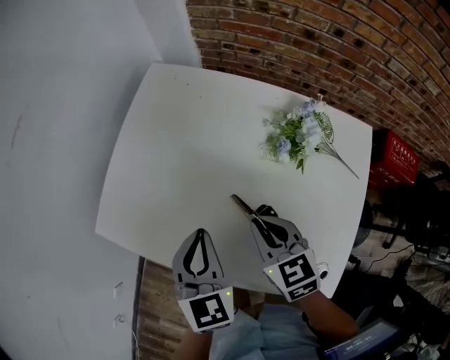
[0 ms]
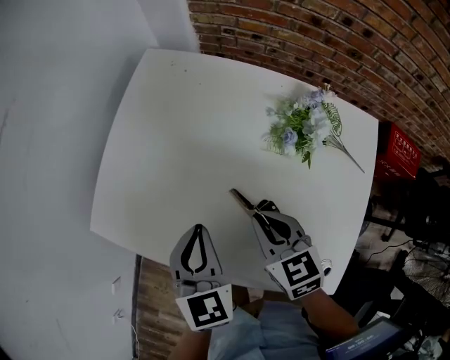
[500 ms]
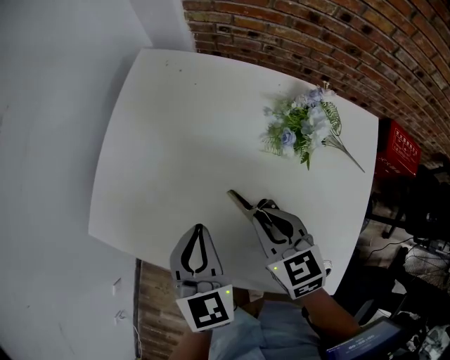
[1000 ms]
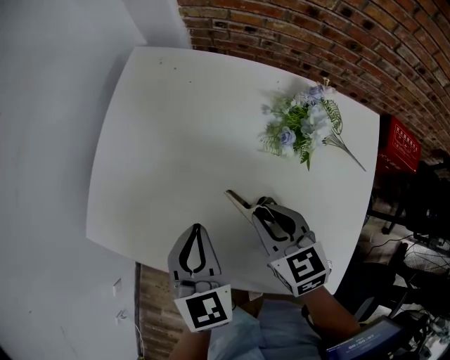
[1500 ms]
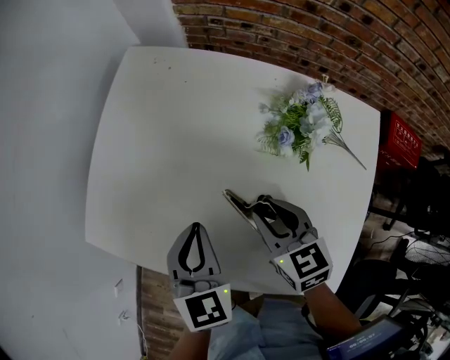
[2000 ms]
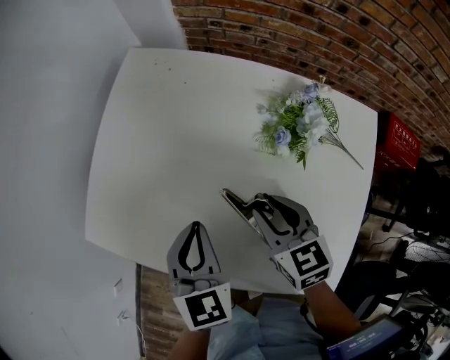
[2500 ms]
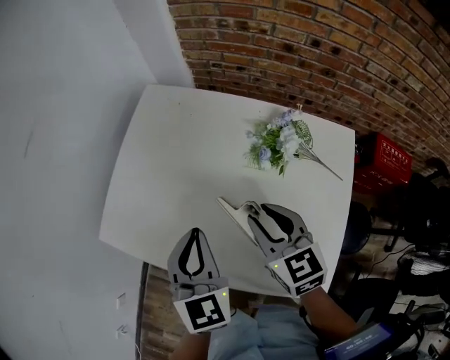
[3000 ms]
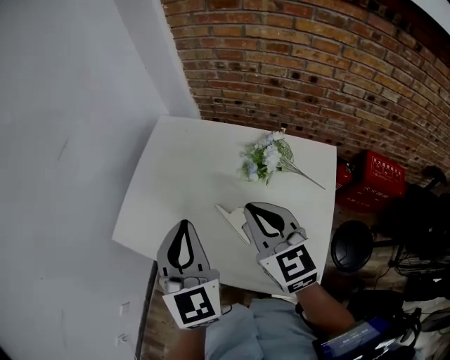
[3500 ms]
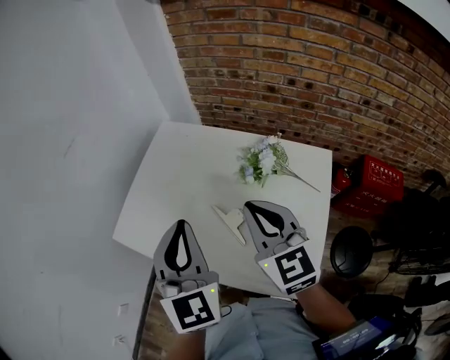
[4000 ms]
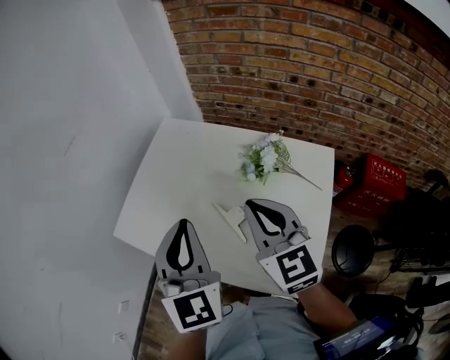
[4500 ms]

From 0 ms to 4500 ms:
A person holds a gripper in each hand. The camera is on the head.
From 0 ms to 2000 ms: The right gripper ends up about 5 cm from where it was, and opens its fingers.
From 2000 ms to 4500 ms: The grippers both shift upward by approximately 25 cm. The right gripper rotates about 30 degrees, and closes up, while the left gripper rotates approximately 30 degrees.

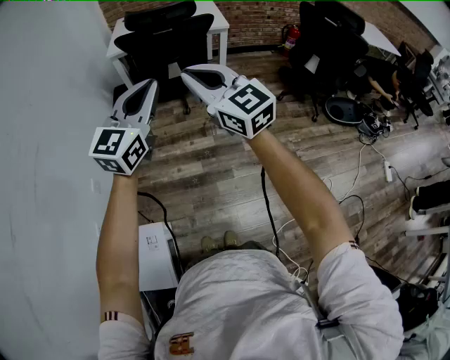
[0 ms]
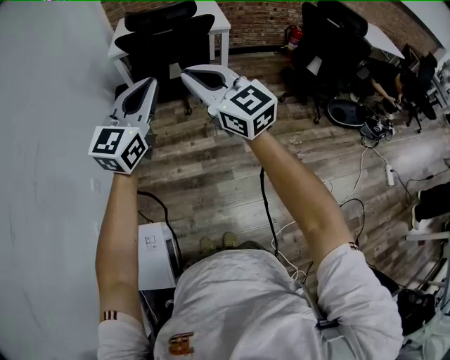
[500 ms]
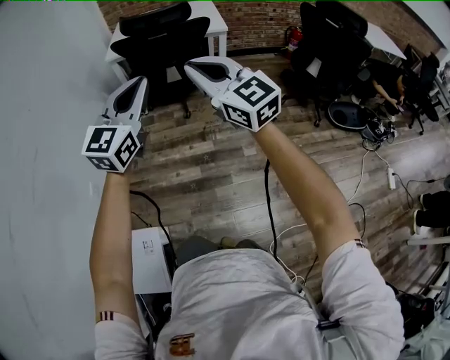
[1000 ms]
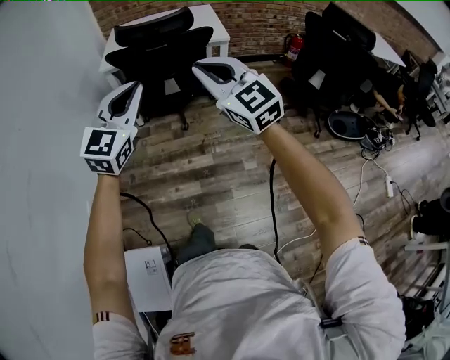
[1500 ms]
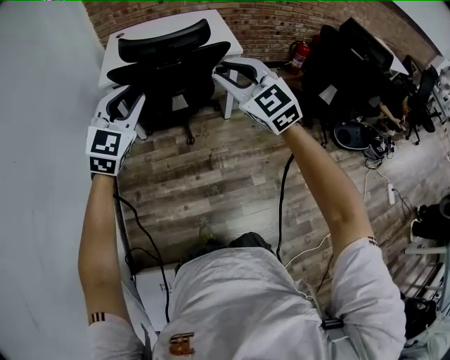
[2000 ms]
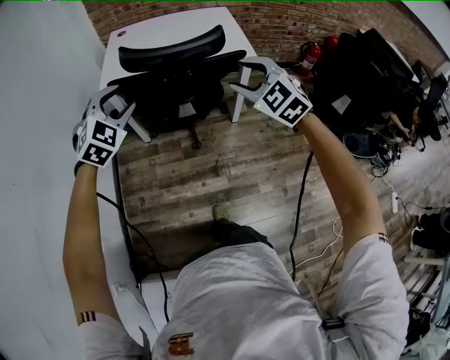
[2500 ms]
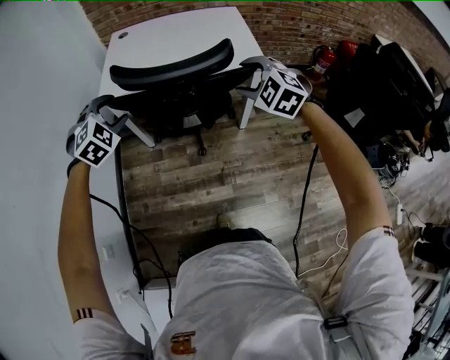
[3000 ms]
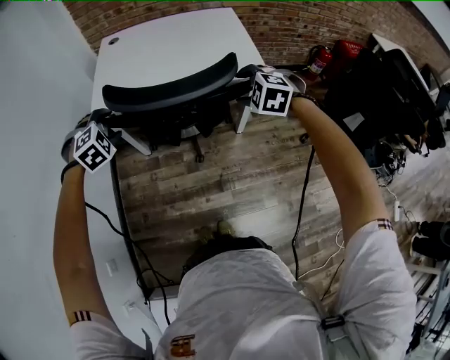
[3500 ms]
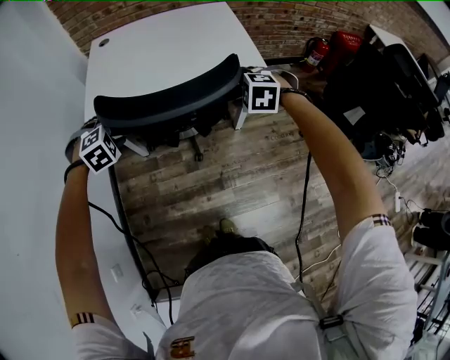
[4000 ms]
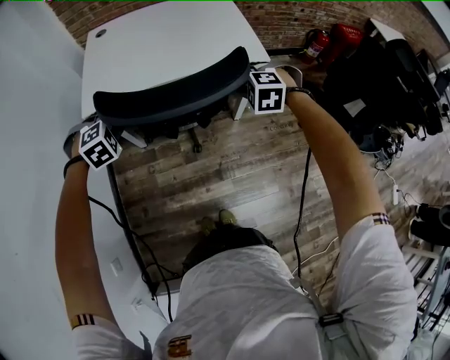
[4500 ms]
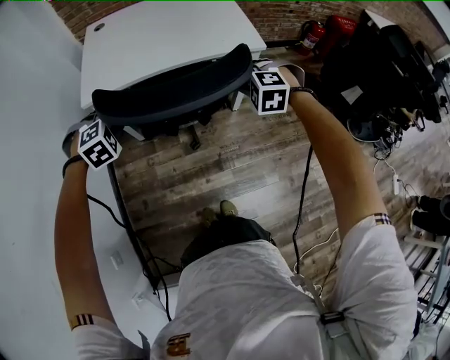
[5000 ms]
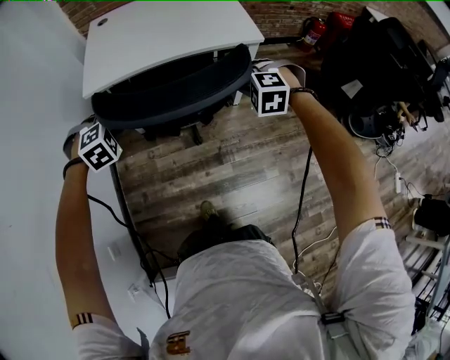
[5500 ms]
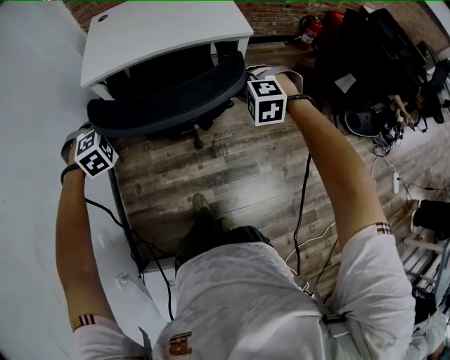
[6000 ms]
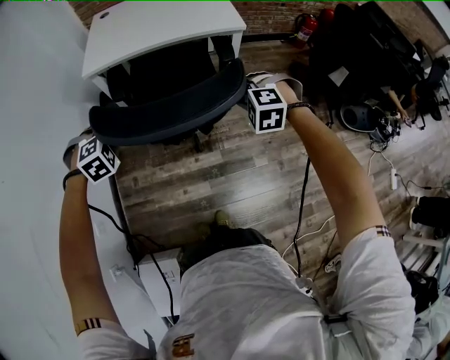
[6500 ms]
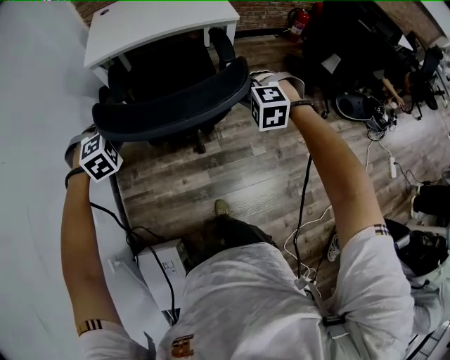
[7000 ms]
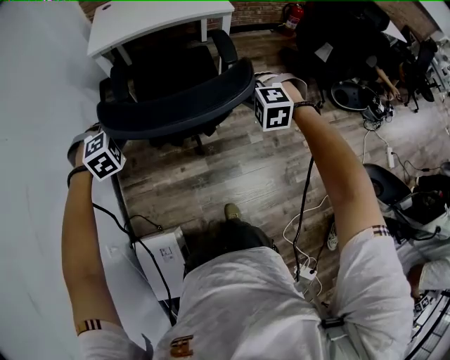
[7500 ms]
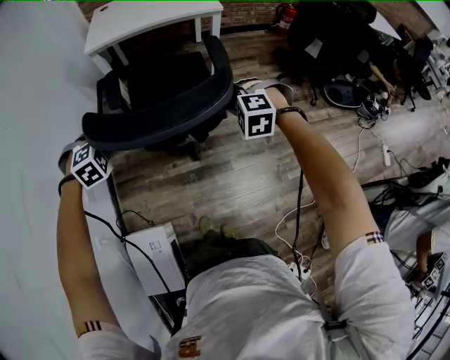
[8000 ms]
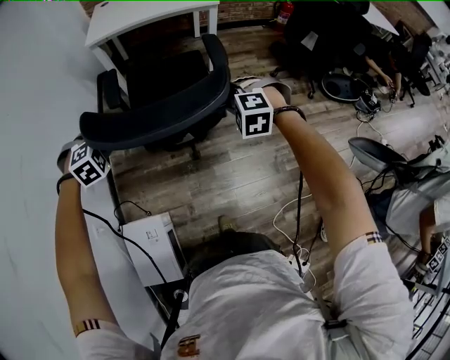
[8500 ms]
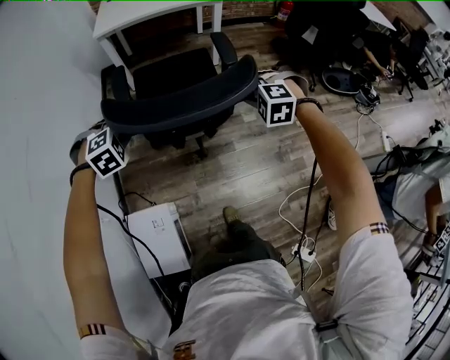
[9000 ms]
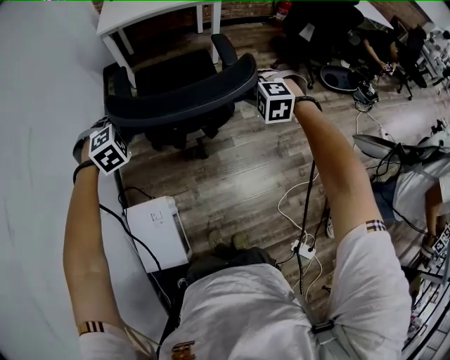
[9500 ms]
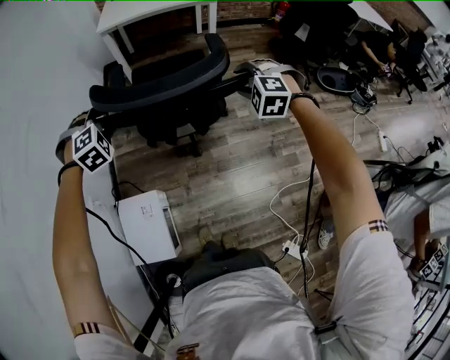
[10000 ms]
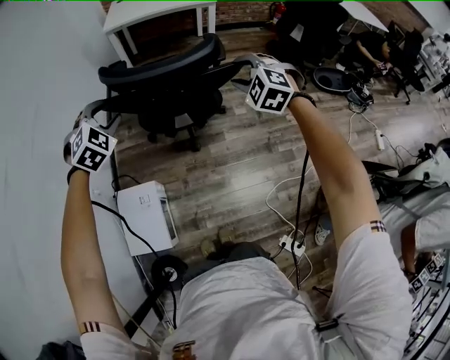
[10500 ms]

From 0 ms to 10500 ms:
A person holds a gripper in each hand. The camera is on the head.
From 0 ms to 2000 ms: Both grippers move forward, approximately 30 cm. The right gripper changes its angle by roughly 30 degrees, and opens its fingers. The left gripper rotates roughly 30 degrees, and opens up.
From 2000 ms to 4000 ms: Both grippers travel together forward and downward, approximately 40 cm. The right gripper points its fingers roughly 60 degrees further downward, and opens its fingers, while the left gripper angles its fingers downward, by some 50 degrees, and opens up.
From 4000 ms to 6500 ms: The grippers both shift backward by about 30 cm. The right gripper closes up. Meanwhile the left gripper closes.
From 6500 ms to 8500 ms: The two grippers go some 35 cm backward.
From 8500 ms to 10500 ms: Both grippers travel together backward and upward, about 25 cm. The left gripper rotates some 30 degrees, and opens, while the right gripper rotates roughly 20 degrees, and opens its fingers.

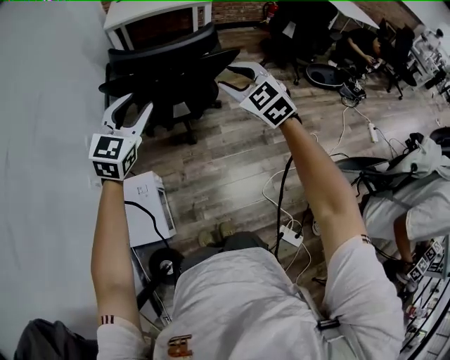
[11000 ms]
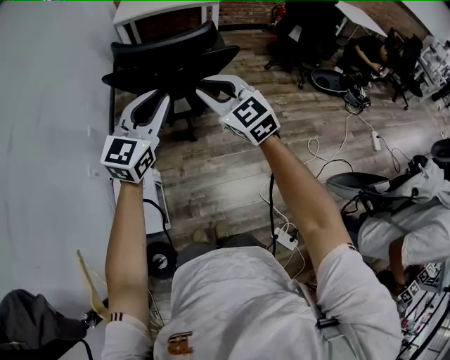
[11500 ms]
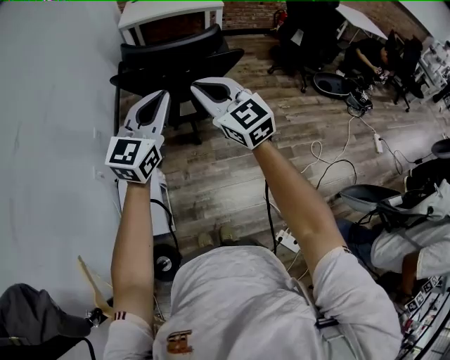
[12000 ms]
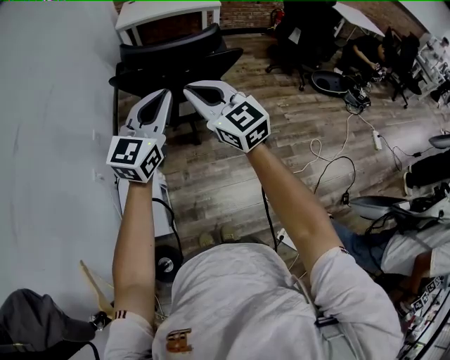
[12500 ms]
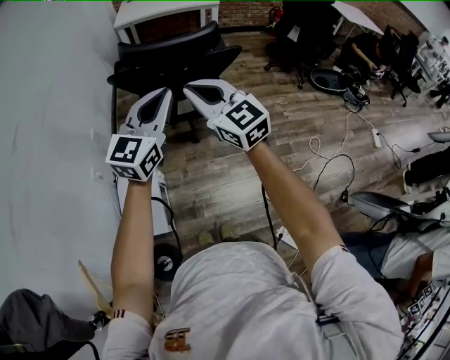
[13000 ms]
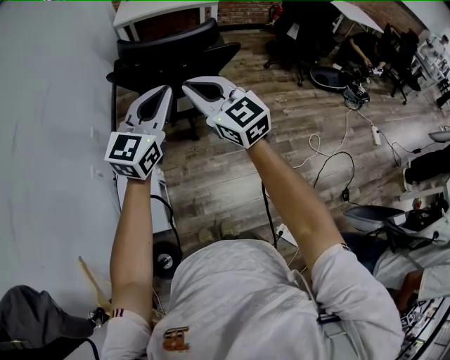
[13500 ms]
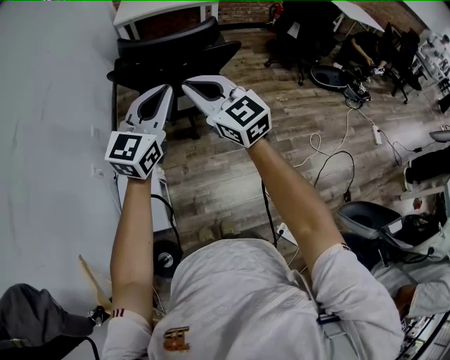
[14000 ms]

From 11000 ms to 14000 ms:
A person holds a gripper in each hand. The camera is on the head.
From 11000 ms to 12500 ms: The left gripper shifts roughly 10 cm backward, upward and to the right, and closes its fingers, while the right gripper goes approximately 15 cm to the left, backward and upward, turns by roughly 30 degrees, and closes.
From 12500 ms to 14000 ms: There are only small adjustments of the grippers.

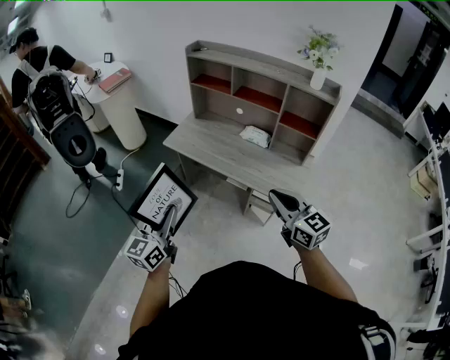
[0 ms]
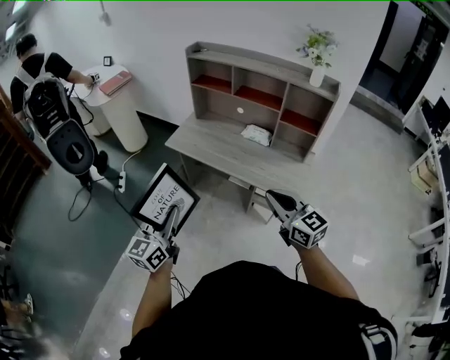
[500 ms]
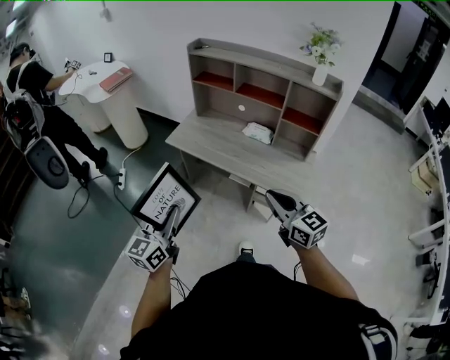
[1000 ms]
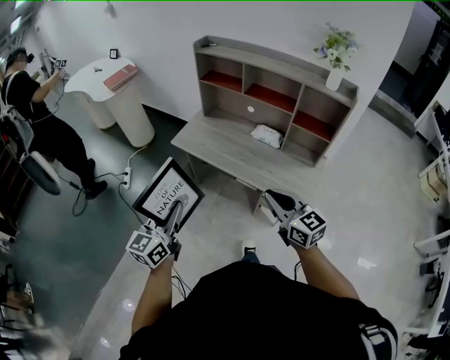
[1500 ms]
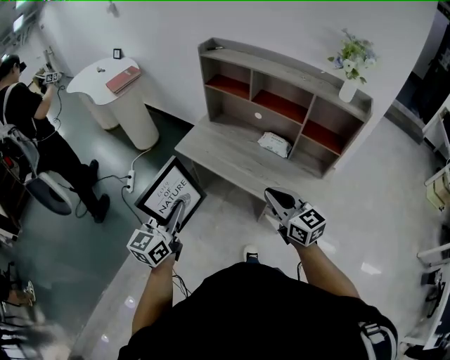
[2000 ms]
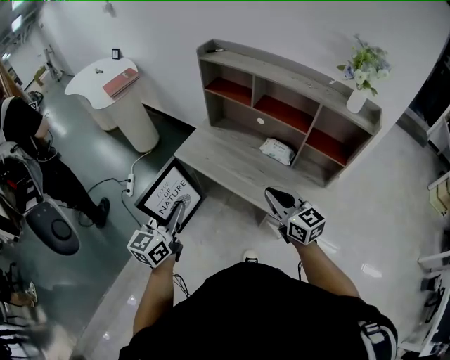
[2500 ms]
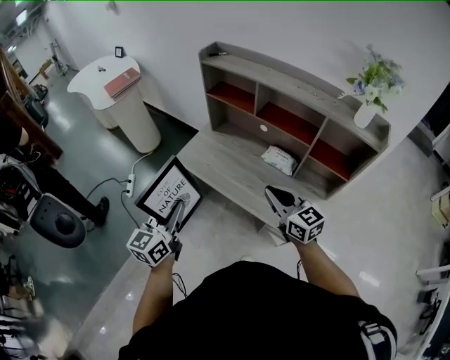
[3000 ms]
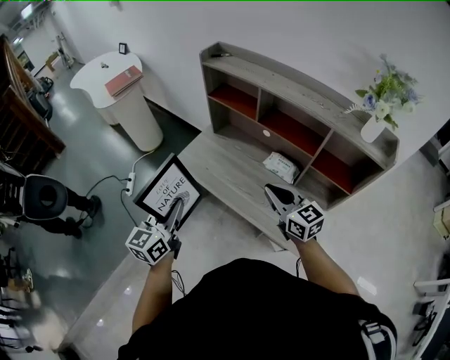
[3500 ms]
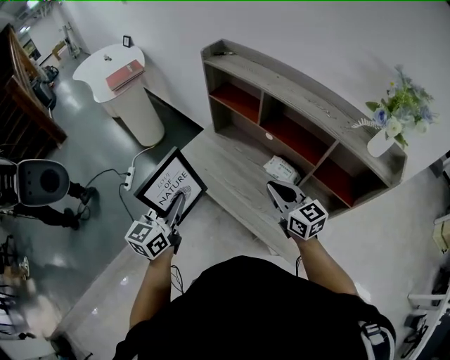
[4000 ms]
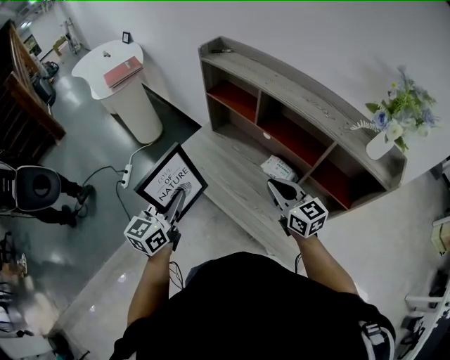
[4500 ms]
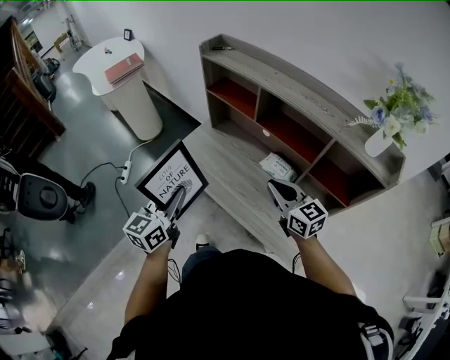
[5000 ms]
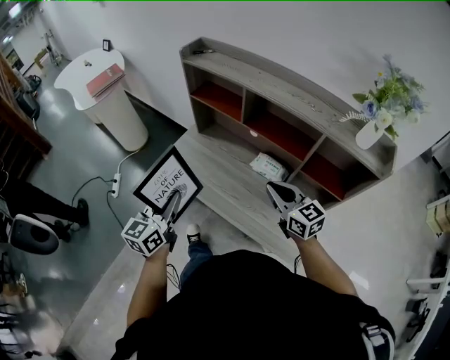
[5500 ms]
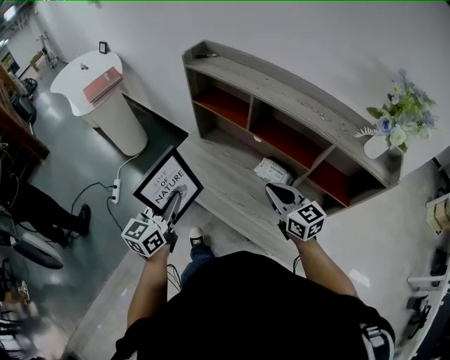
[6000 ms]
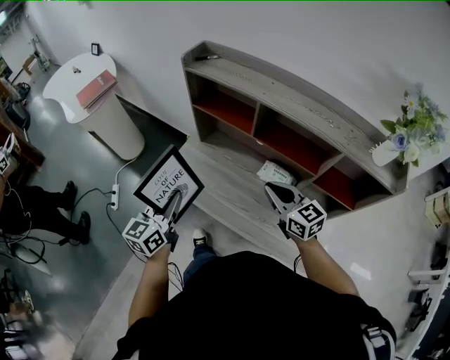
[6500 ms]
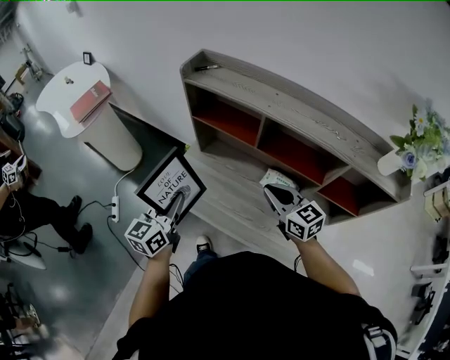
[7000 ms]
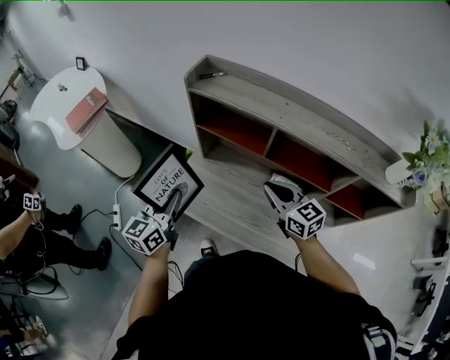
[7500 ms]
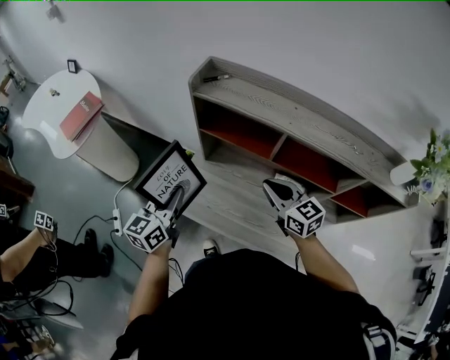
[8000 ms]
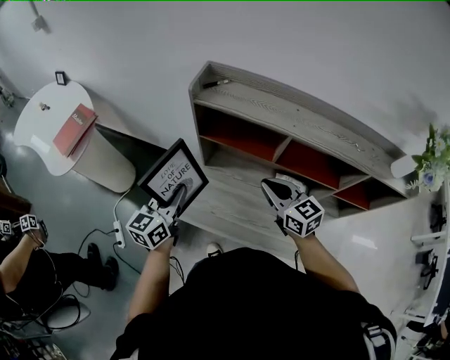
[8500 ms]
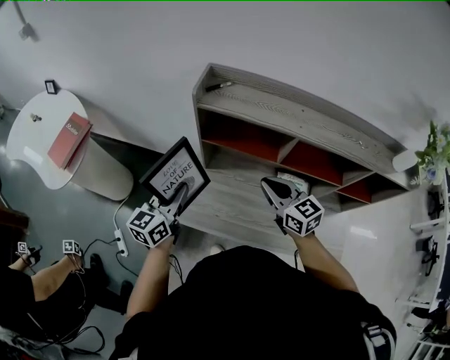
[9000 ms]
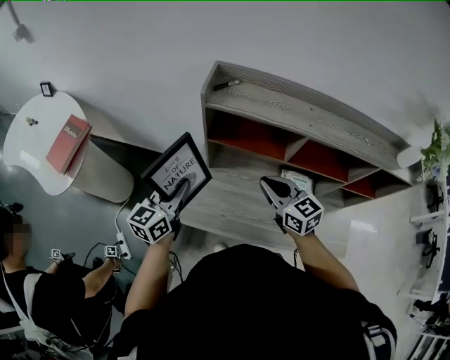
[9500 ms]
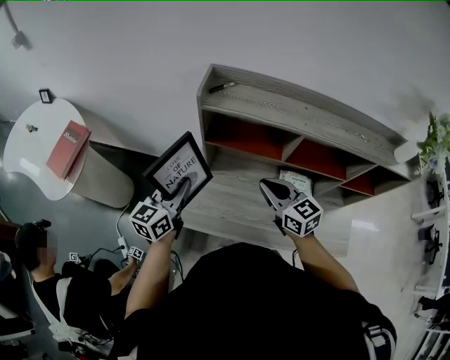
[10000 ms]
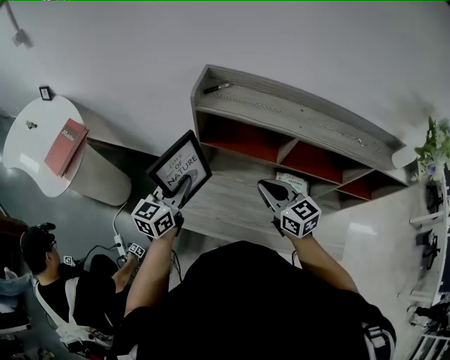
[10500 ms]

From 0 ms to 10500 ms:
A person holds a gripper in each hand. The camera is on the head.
From 0 ms to 2000 ms: Both grippers move forward, roughly 15 cm.
From 2000 ms to 4000 ms: The right gripper heads forward, covering some 25 cm; the left gripper travels forward and to the right by about 20 cm.
From 4000 ms to 6500 ms: The right gripper moves forward, roughly 10 cm; the left gripper shifts some 15 cm forward.
From 6500 ms to 8500 ms: The two grippers go about 20 cm forward and to the left.
From 8500 ms to 10500 ms: The left gripper heads forward, covering approximately 5 cm.
